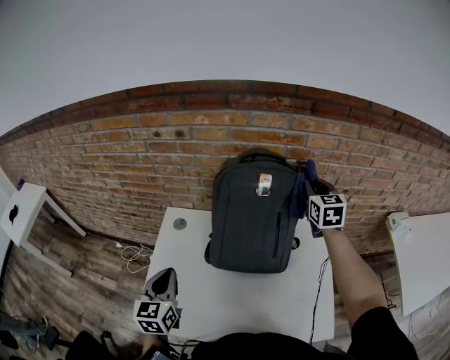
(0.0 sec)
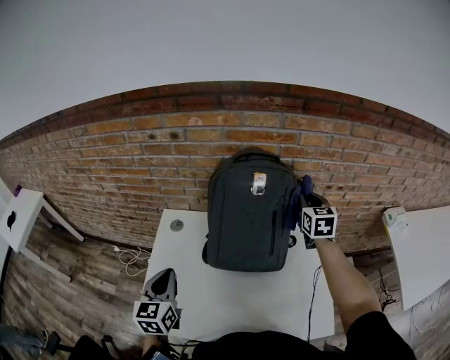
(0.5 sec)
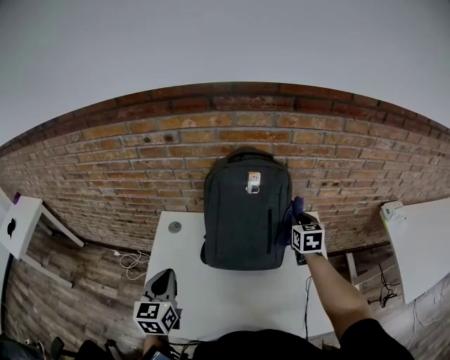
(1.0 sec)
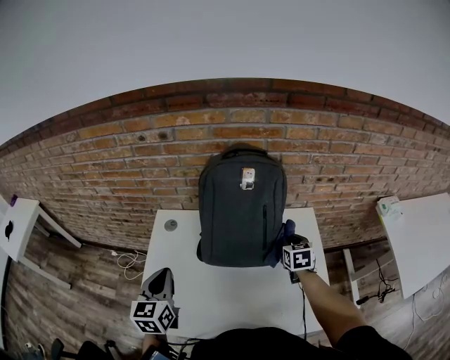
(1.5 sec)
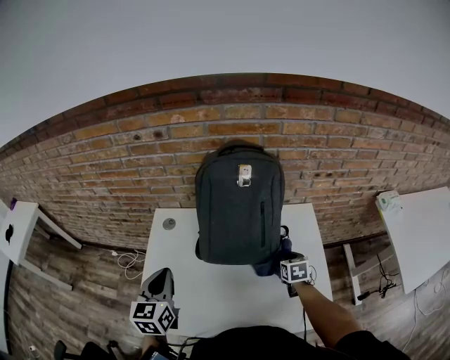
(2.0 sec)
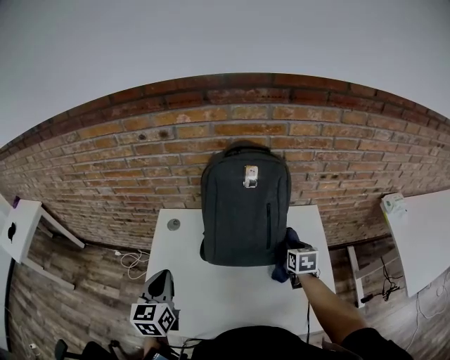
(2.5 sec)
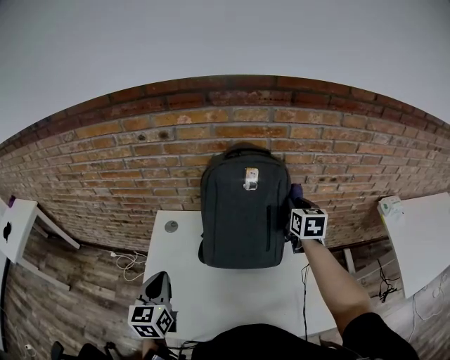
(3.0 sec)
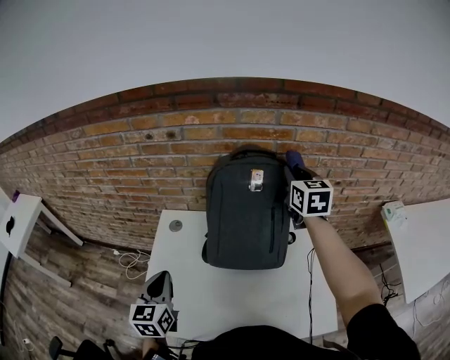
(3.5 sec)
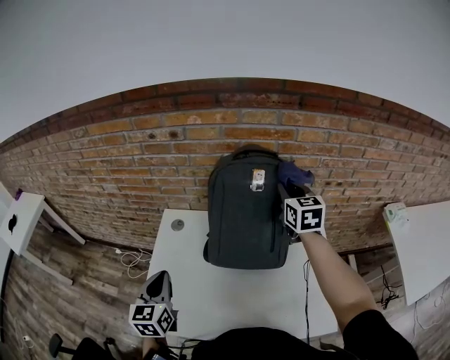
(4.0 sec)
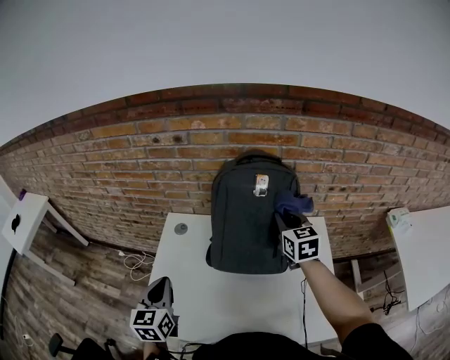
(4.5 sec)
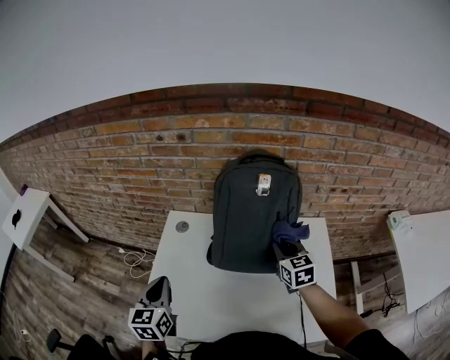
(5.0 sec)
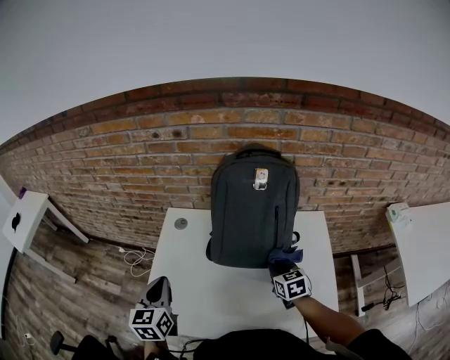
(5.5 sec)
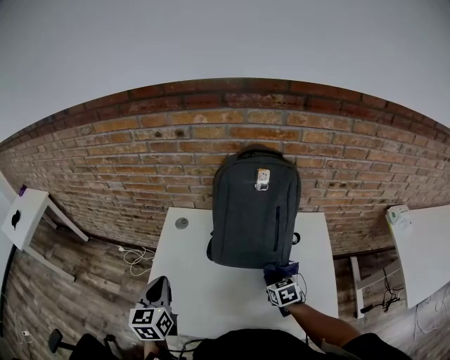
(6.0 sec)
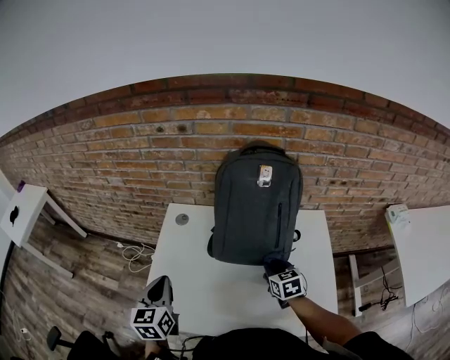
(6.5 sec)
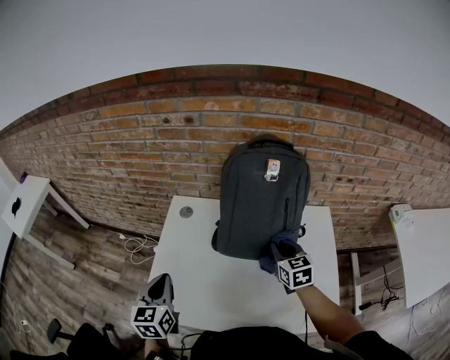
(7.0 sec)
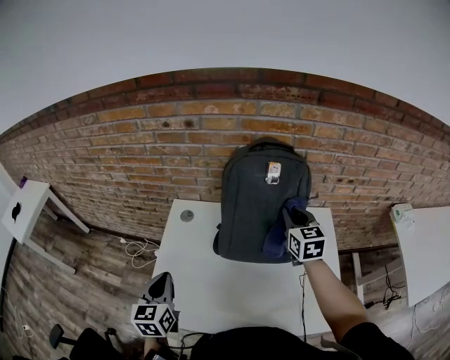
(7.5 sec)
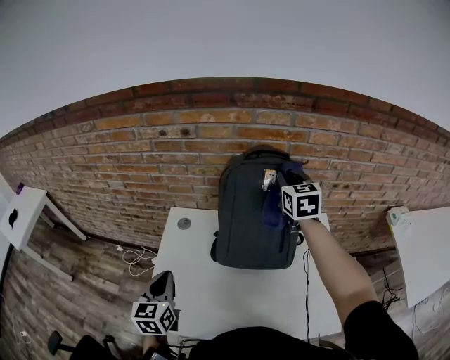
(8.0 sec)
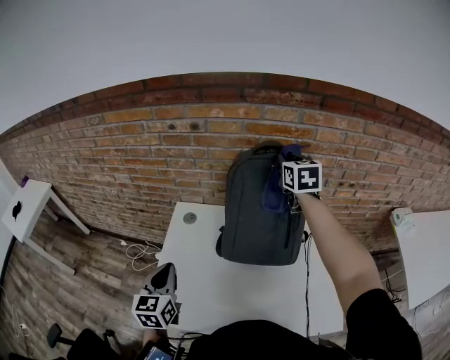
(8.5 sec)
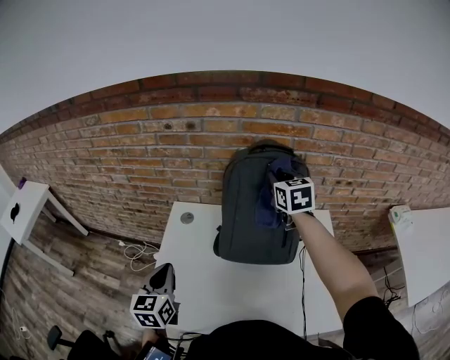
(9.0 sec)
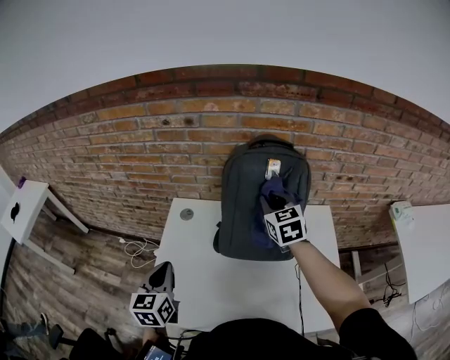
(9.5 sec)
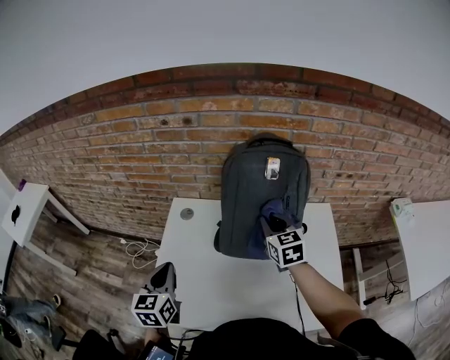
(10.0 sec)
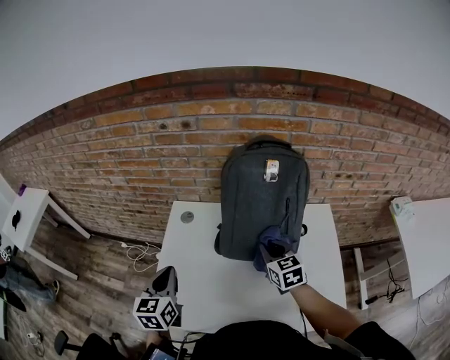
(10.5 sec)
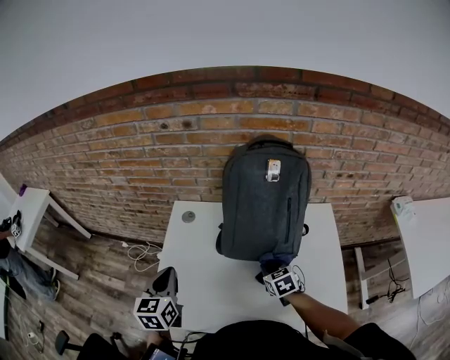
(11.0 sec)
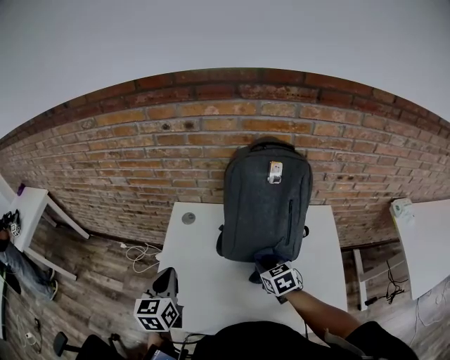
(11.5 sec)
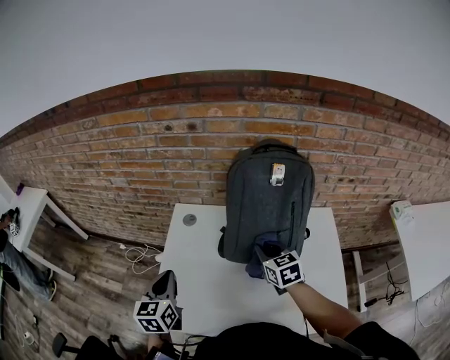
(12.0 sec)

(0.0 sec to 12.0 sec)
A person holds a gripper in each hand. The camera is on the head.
0.0 sec - 2.0 sec: The right gripper goes roughly 35 cm downward and backward, and angles its fingers downward, by roughly 30 degrees.
2.0 sec - 4.0 sec: The right gripper moves upward and forward, about 35 cm, and angles its fingers upward, by some 30 degrees.
4.0 sec - 6.0 sec: The right gripper moves downward and backward, roughly 35 cm, and tilts its fingers roughly 30 degrees downward.
6.0 sec - 8.0 sec: The right gripper is displaced upward and forward by about 40 cm, and rotates roughly 30 degrees.
8.0 sec - 10.0 sec: The right gripper heads downward, backward and to the left, covering about 20 cm.
10.0 sec - 12.0 sec: The right gripper reaches some 20 cm downward, then returns.

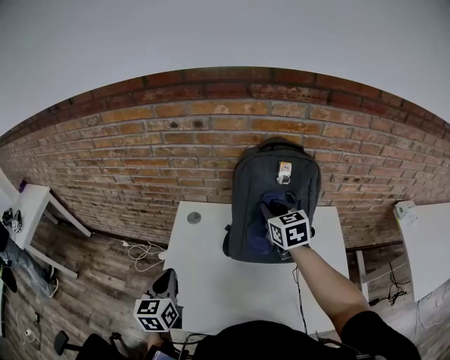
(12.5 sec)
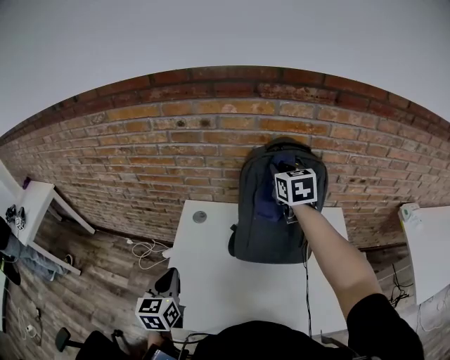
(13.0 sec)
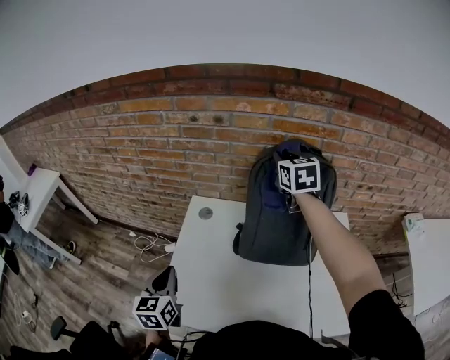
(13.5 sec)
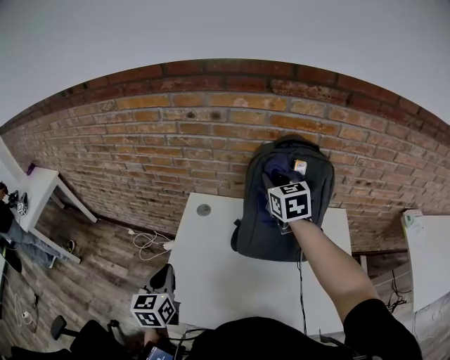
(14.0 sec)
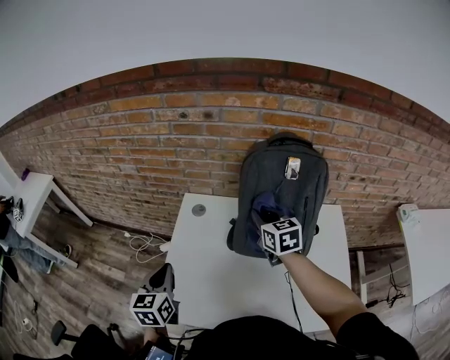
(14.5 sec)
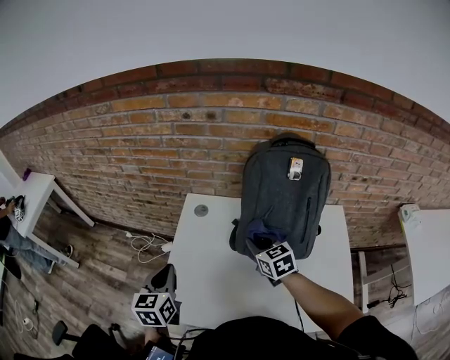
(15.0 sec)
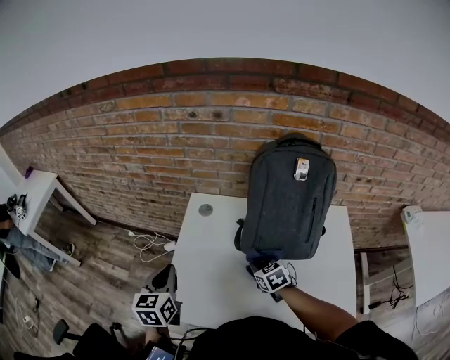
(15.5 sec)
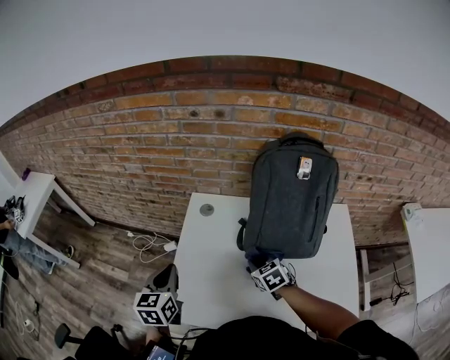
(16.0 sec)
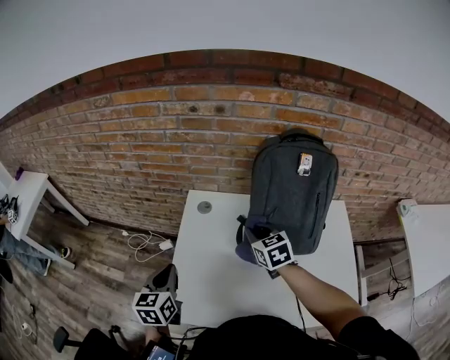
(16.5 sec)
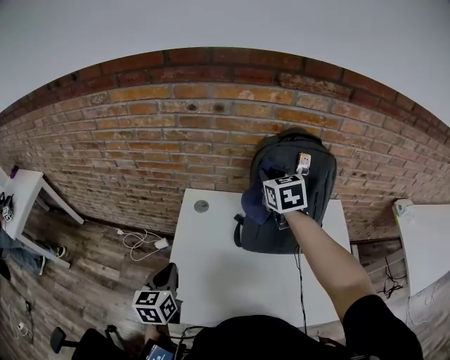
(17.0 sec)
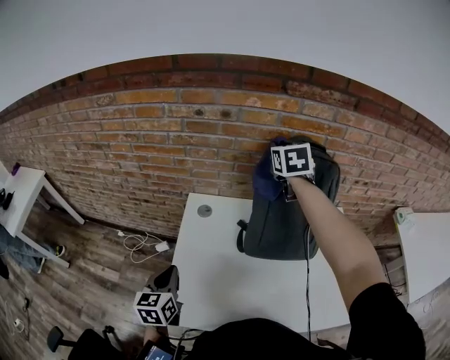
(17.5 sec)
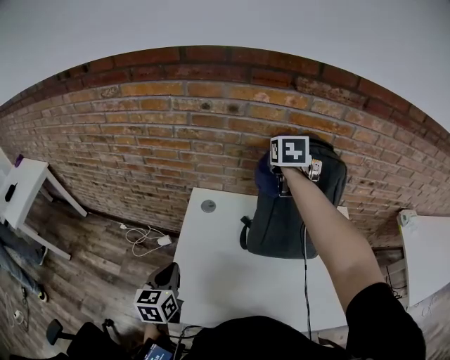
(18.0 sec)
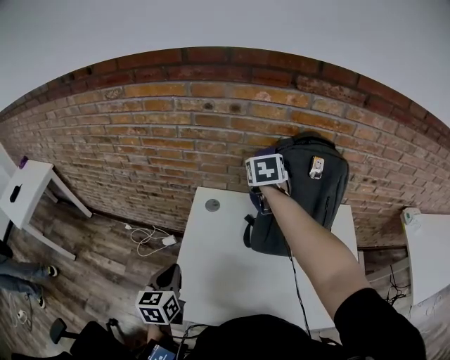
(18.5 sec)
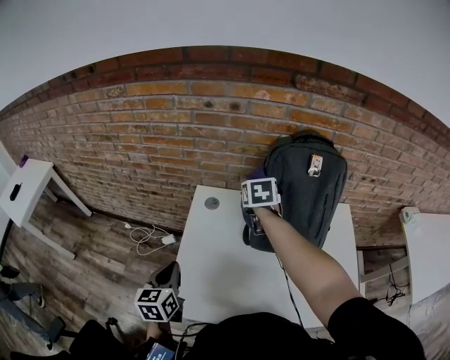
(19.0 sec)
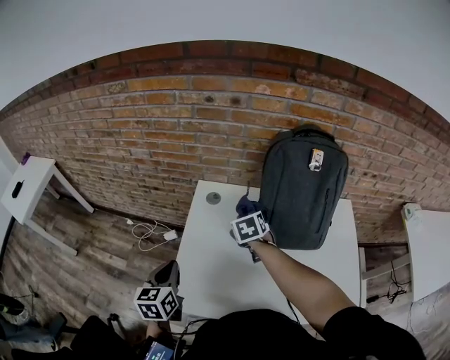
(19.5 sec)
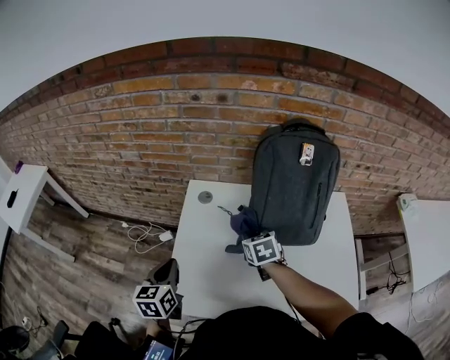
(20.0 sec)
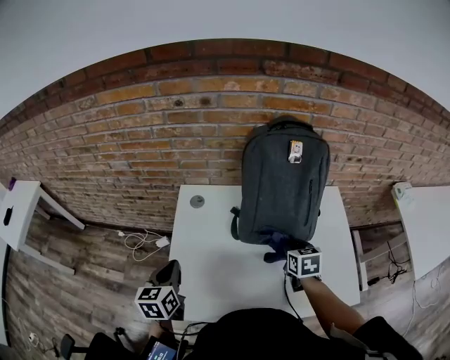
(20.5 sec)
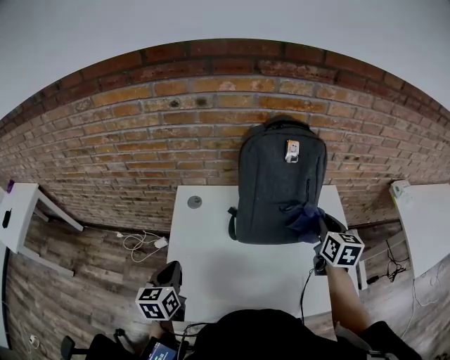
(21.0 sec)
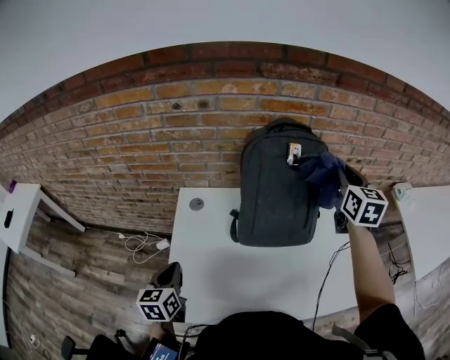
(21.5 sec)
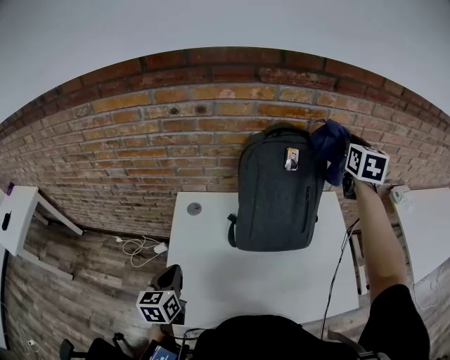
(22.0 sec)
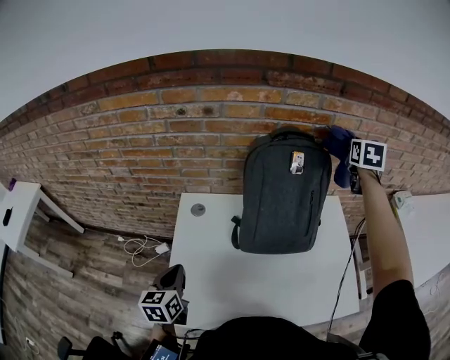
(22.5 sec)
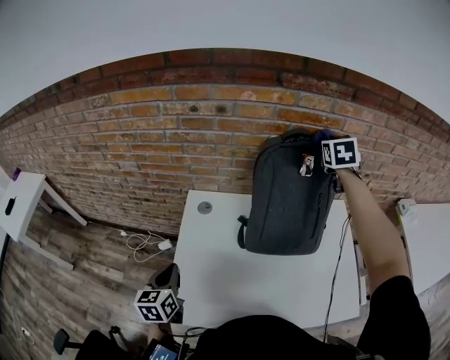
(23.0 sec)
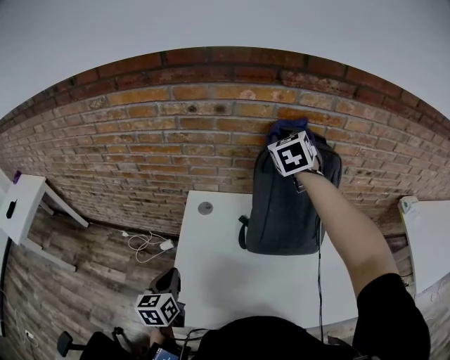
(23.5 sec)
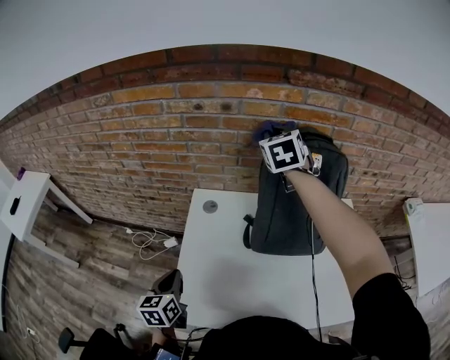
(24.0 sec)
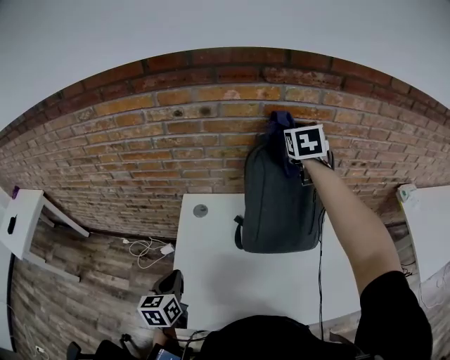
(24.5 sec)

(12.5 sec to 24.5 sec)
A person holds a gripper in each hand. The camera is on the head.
12.5 sec - 14.5 sec: The right gripper goes about 5 cm to the left, and moves approximately 10 cm upward and comes back.
14.5 sec - 16.5 sec: The right gripper heads to the left, covering about 5 cm, and goes downward and returns, approximately 20 cm each way.
16.5 sec - 18.5 sec: The right gripper is displaced forward and upward by about 20 cm.
18.5 sec - 20.5 sec: The right gripper heads backward, downward and to the right, covering some 35 cm.
20.5 sec - 22.5 sec: The right gripper heads upward, forward and to the right, covering some 40 cm, and turns by about 30 degrees.
22.5 sec - 24.5 sec: The right gripper moves to the left, about 20 cm.

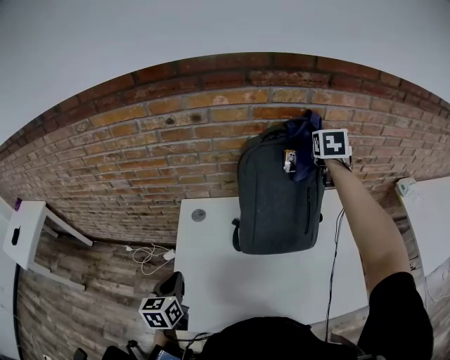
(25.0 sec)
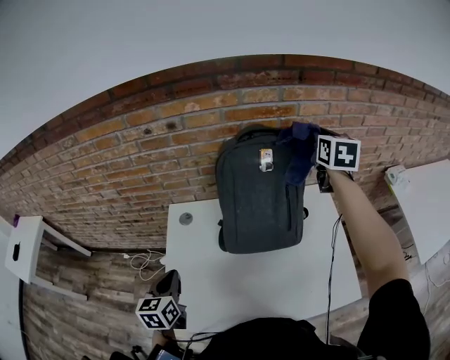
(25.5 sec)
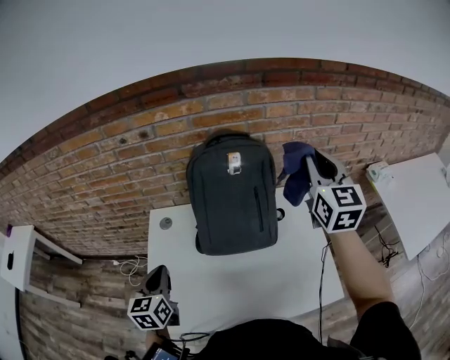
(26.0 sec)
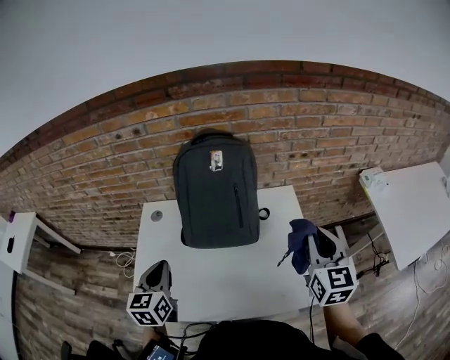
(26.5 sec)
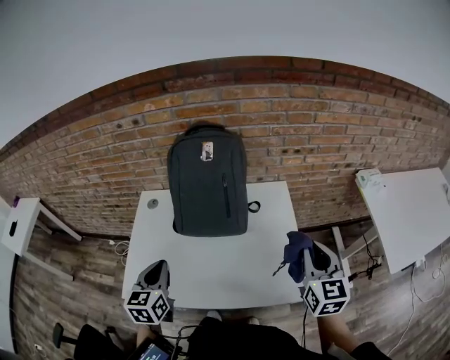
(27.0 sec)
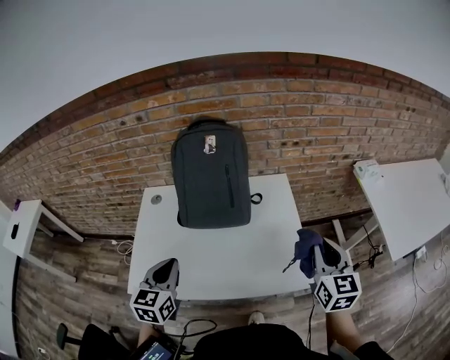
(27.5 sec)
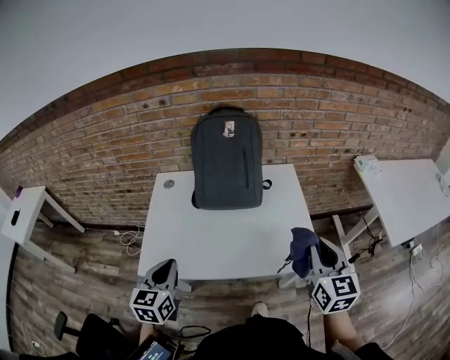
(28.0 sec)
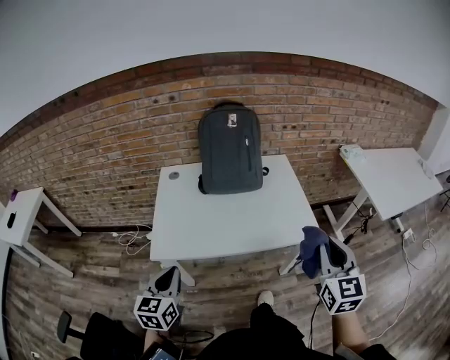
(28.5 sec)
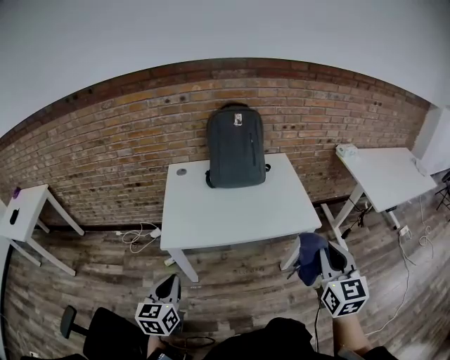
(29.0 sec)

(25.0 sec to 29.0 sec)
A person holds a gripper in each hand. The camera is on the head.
25.0 sec - 27.0 sec: The left gripper shifts some 25 cm to the right and upward. The right gripper shifts some 40 cm backward and to the right, and changes its angle by approximately 20 degrees.
27.0 sec - 29.0 sec: The two grippers go roughly 35 cm backward.
